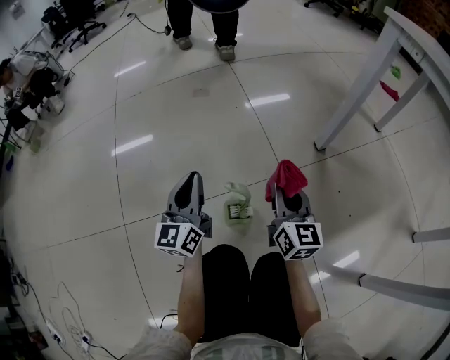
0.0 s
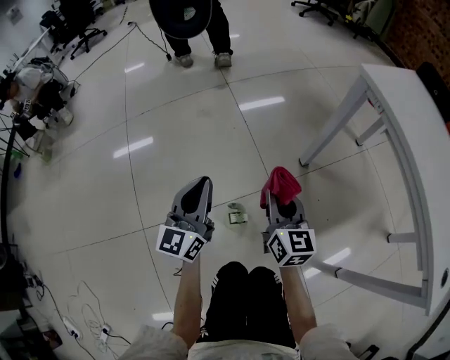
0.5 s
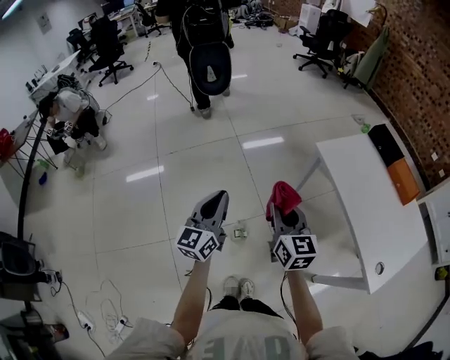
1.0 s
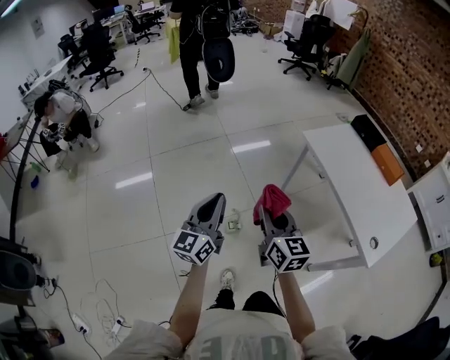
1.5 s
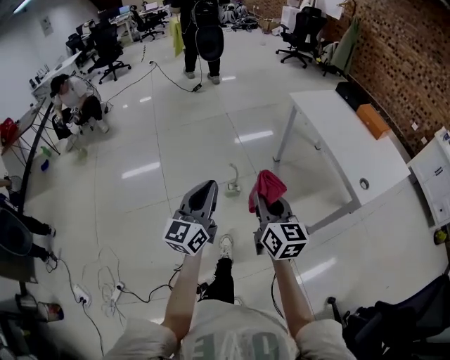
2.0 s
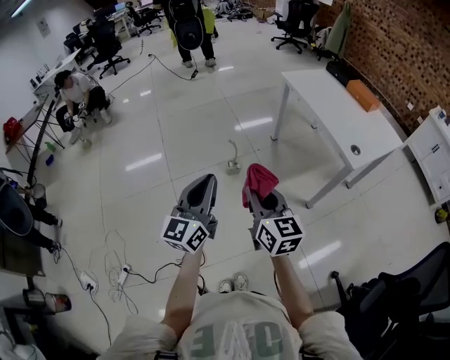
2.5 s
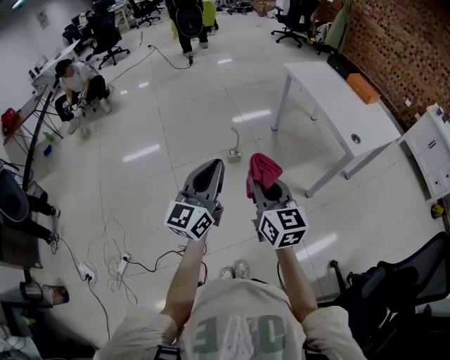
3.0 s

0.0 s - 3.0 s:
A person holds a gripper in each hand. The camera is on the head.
0.0 s - 1.5 s: Both grippers travel together upward, approximately 70 cm.
1.5 s - 3.0 s: Both grippers are carried backward, approximately 50 cm.

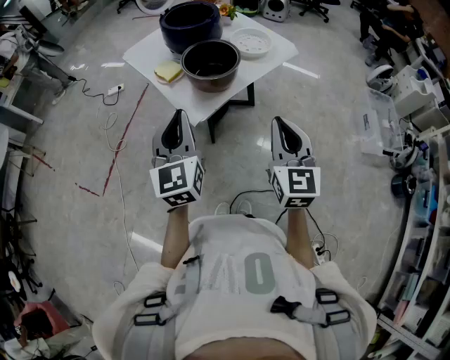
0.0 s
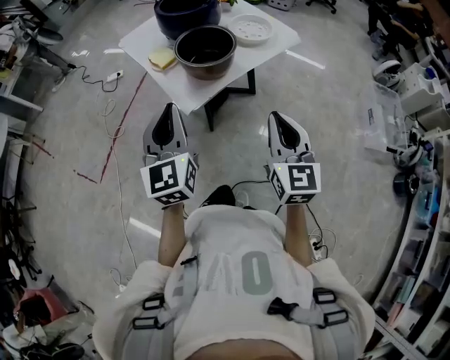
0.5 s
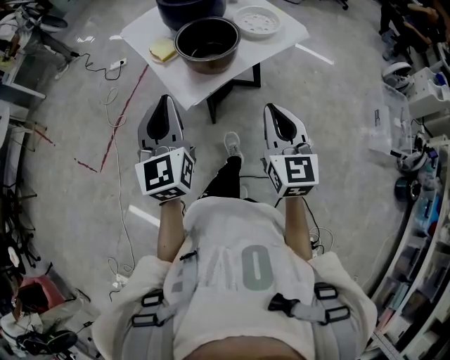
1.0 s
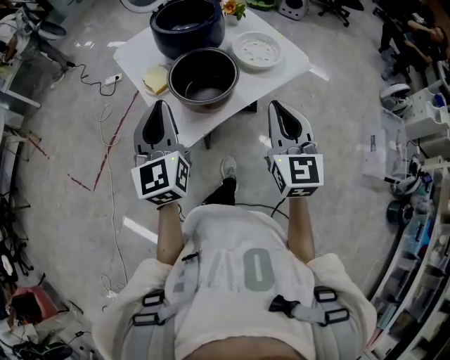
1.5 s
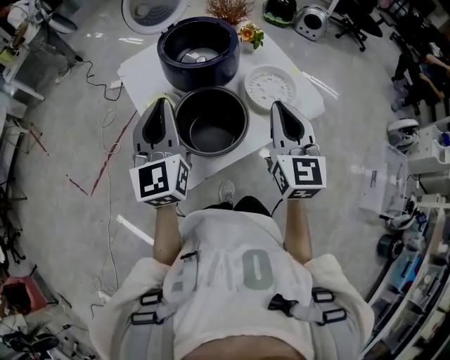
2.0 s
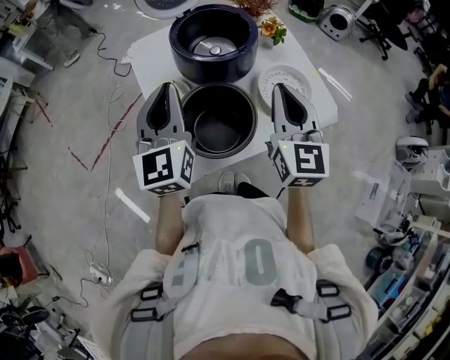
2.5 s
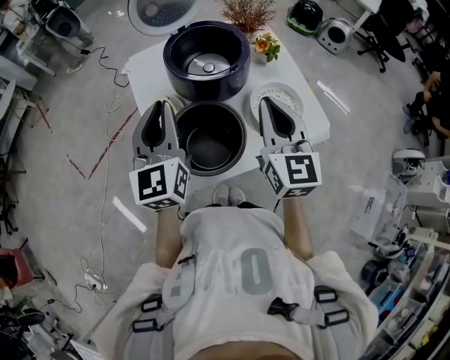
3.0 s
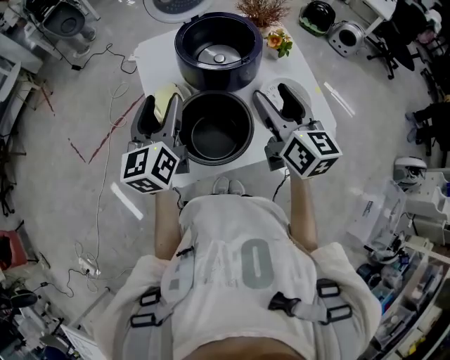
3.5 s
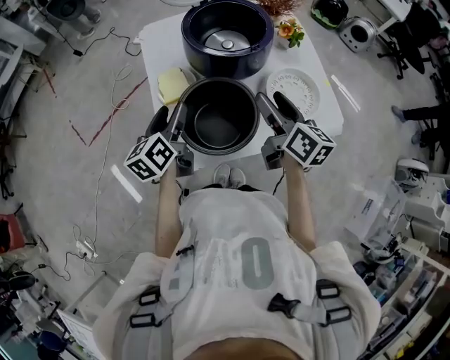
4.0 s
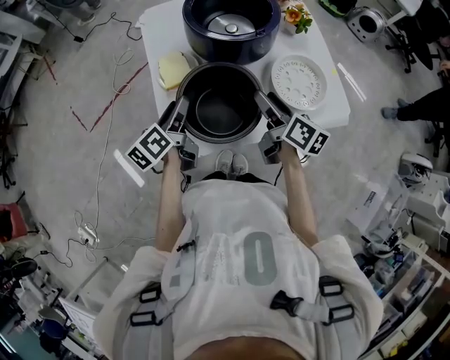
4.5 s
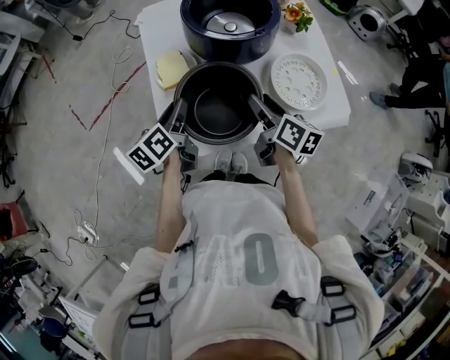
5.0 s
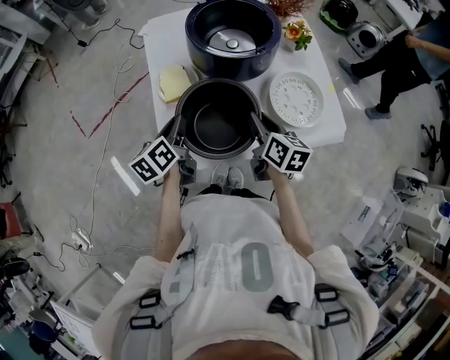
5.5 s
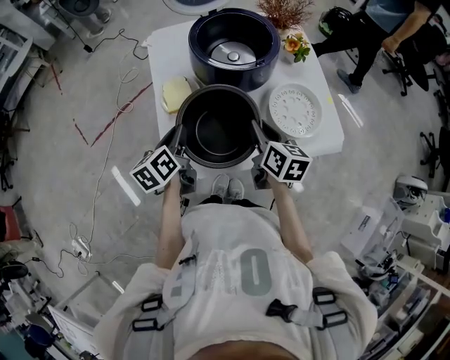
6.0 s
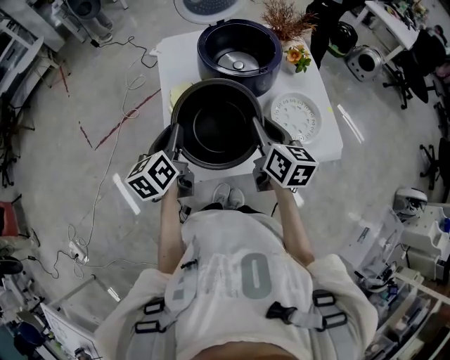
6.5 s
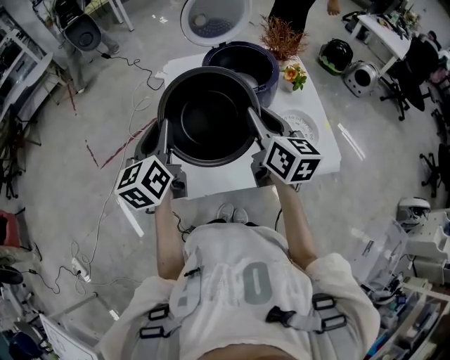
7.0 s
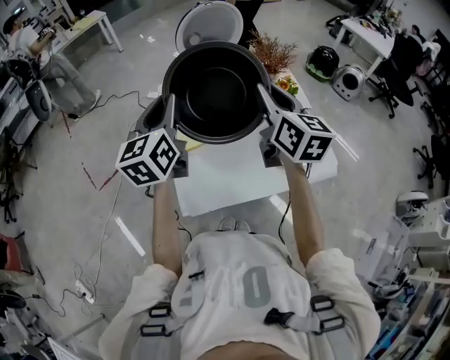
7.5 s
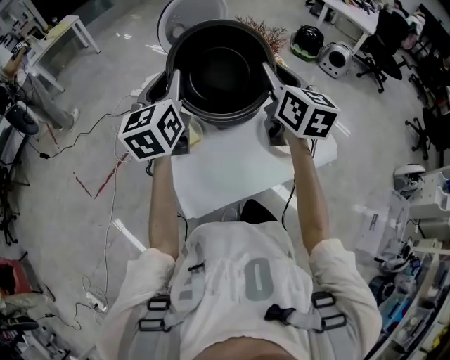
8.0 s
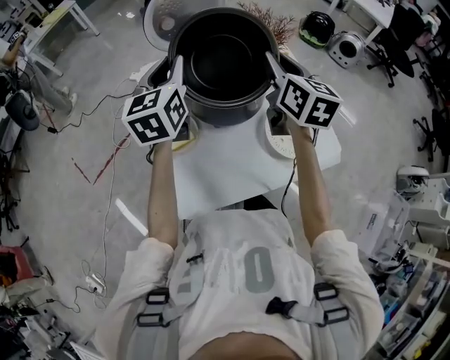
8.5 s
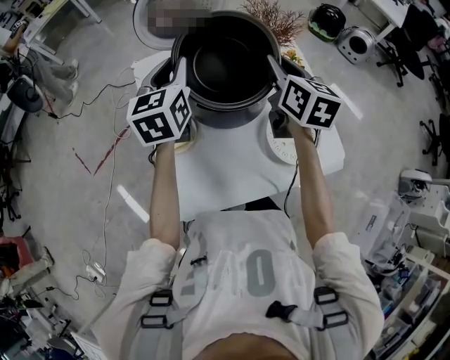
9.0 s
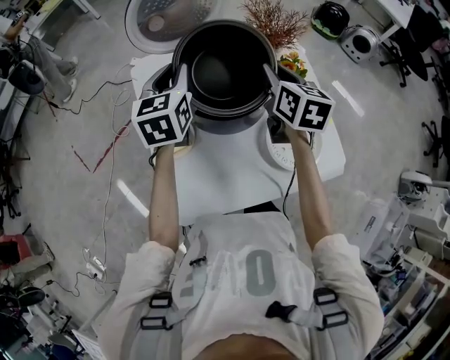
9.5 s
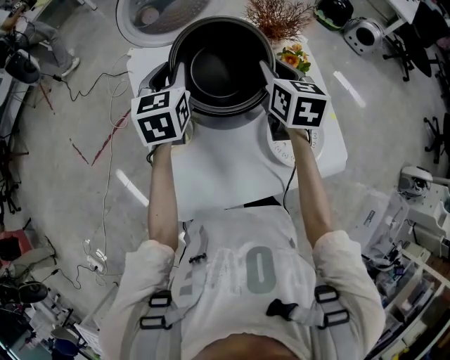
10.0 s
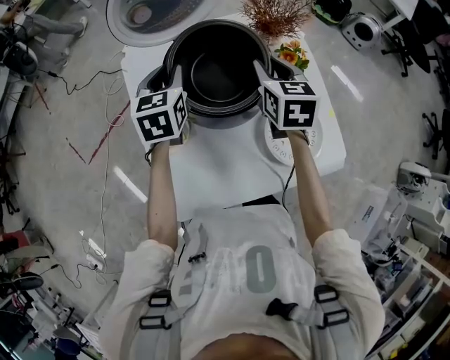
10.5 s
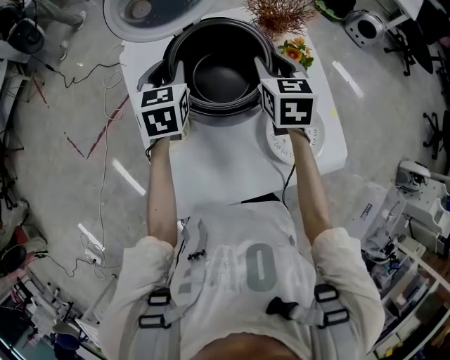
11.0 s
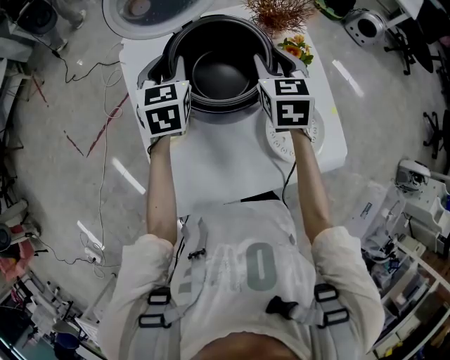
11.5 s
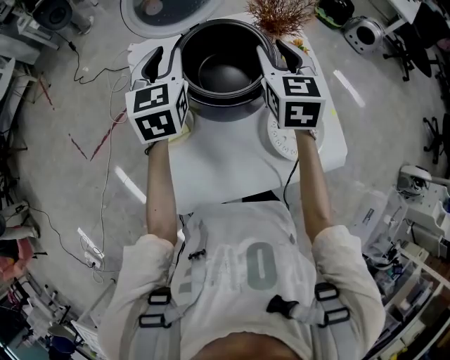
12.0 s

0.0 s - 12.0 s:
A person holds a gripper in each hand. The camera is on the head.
0.0 s - 2.0 s: The two grippers go some 35 cm forward.
2.0 s - 4.0 s: The left gripper is displaced downward by some 15 cm, swivels some 40 degrees, and opens up. The right gripper heads forward and downward, covering roughly 15 cm, swivels about 50 degrees, and opens up.
4.0 s - 6.0 s: The left gripper closes its fingers. The right gripper travels downward by about 5 cm, and closes up.
6.0 s - 8.0 s: Both grippers travel together upward and forward, roughly 25 cm. The left gripper turns by roughly 40 degrees, while the right gripper swivels roughly 30 degrees.
8.0 s - 10.0 s: The left gripper goes about 20 cm forward and downward, and swivels about 20 degrees. The right gripper travels downward and forward by some 20 cm, and changes its angle by some 20 degrees.
10.0 s - 12.0 s: The right gripper heads upward, covering some 5 cm.

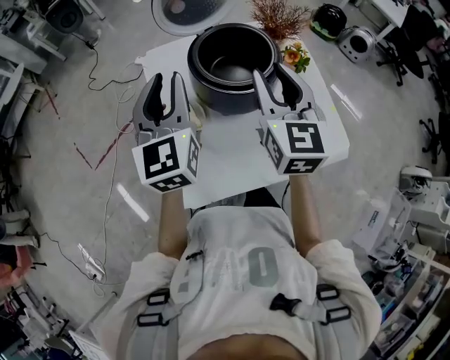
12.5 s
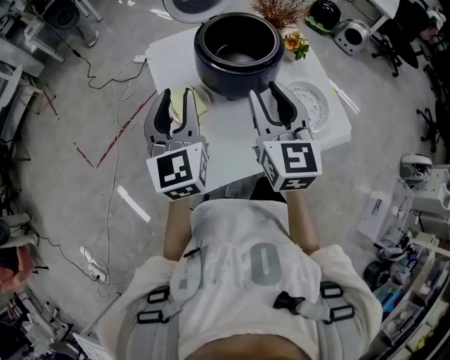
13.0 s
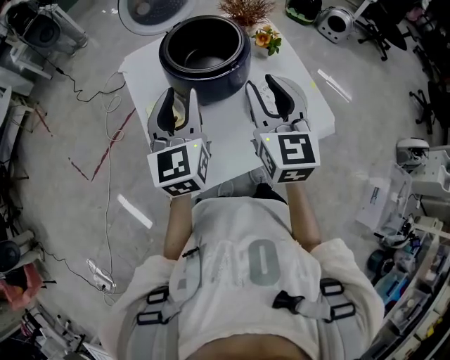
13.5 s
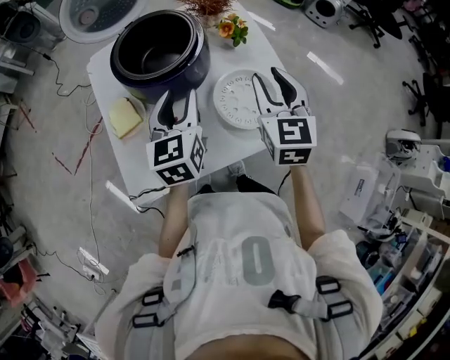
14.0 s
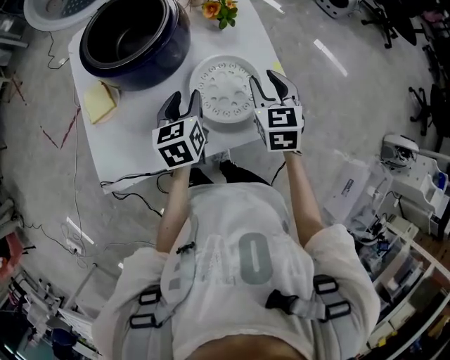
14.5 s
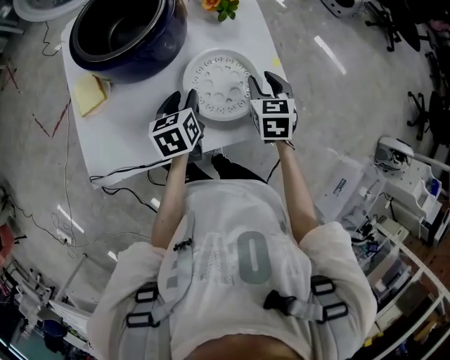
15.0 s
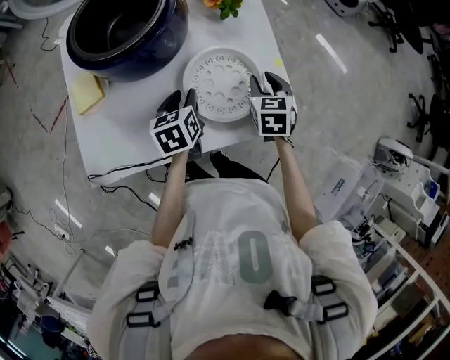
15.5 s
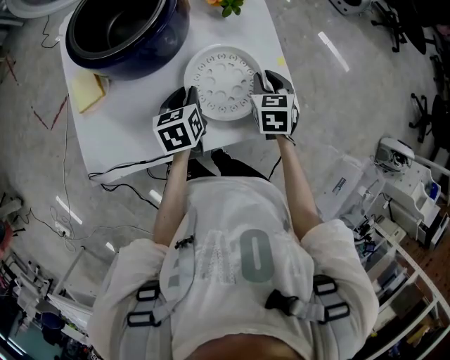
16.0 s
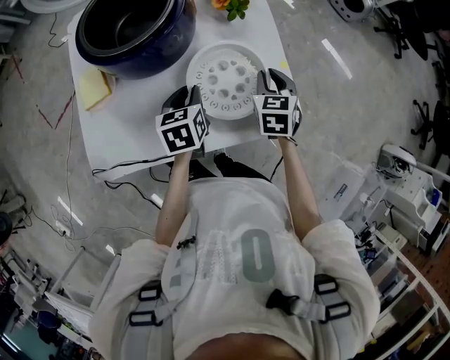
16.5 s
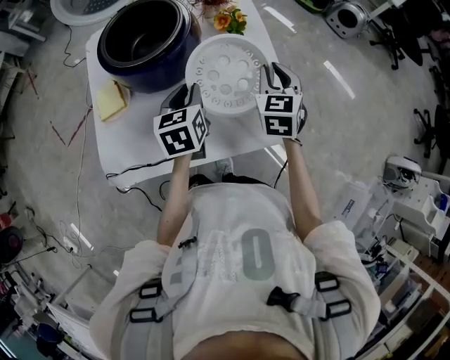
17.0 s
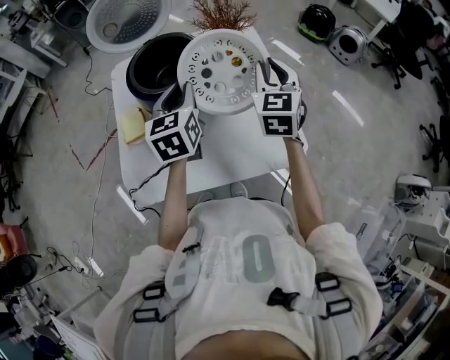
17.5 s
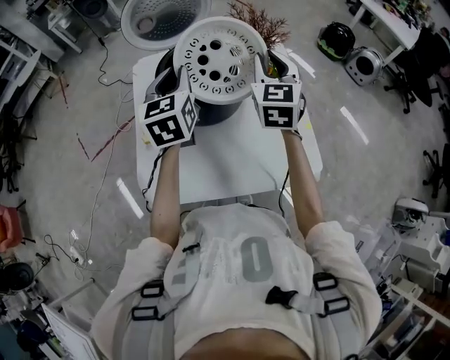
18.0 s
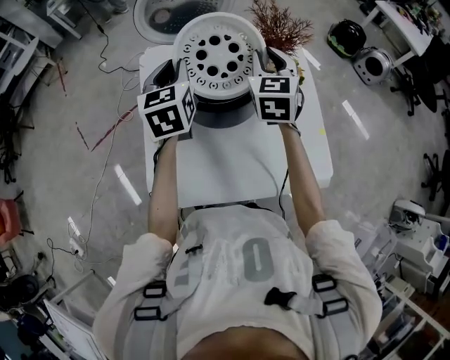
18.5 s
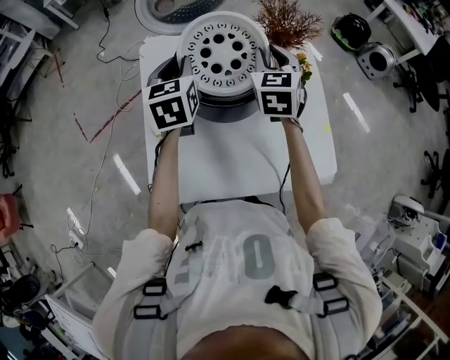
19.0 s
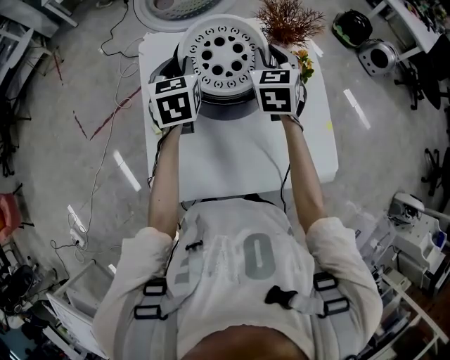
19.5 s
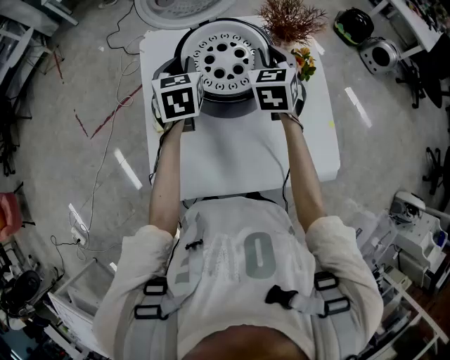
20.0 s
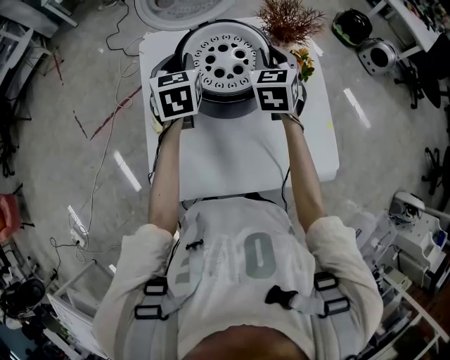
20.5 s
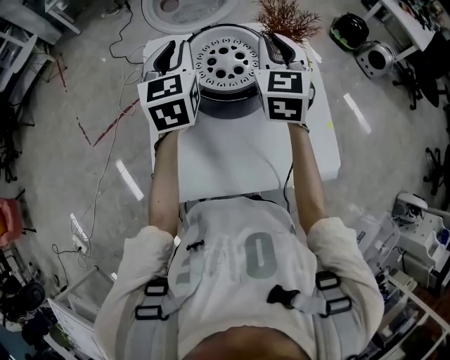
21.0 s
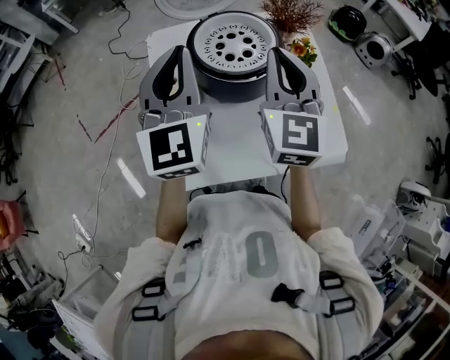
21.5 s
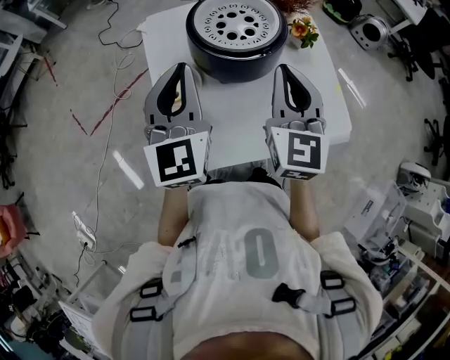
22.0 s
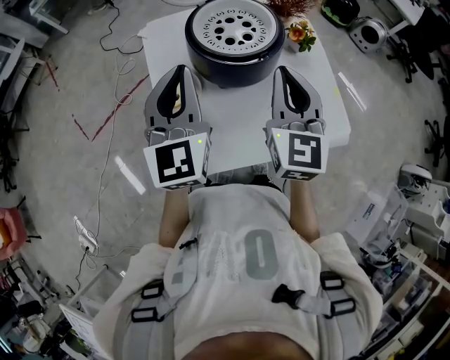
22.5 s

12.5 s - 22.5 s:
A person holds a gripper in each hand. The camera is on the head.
12.5 s - 14.5 s: Both grippers travel together to the right and downward, some 40 cm. The left gripper tilts its fingers roughly 30 degrees downward, while the right gripper turns by approximately 30 degrees.
14.5 s - 16.5 s: Both grippers move downward, roughly 5 cm.
16.5 s - 18.5 s: Both grippers travel together upward, to the left and forward, some 35 cm. The left gripper swivels about 30 degrees, while the right gripper swivels some 20 degrees.
18.5 s - 20.5 s: Both grippers move downward, roughly 5 cm.
20.5 s - 22.5 s: The two grippers go roughly 25 cm backward and upward. The left gripper tips its fingers upward by approximately 30 degrees, while the right gripper swivels approximately 20 degrees.

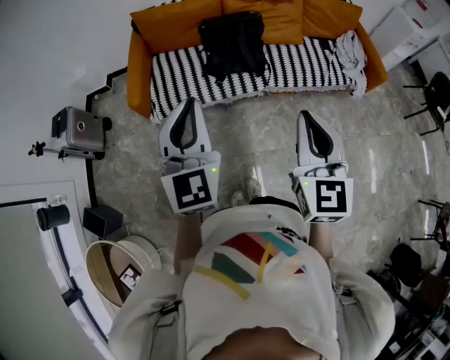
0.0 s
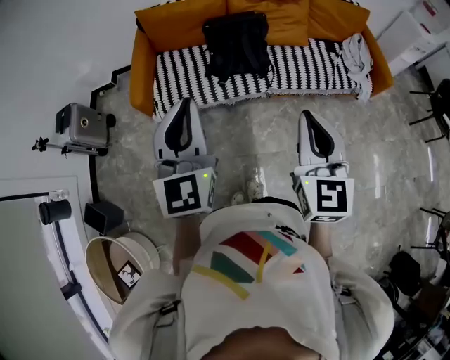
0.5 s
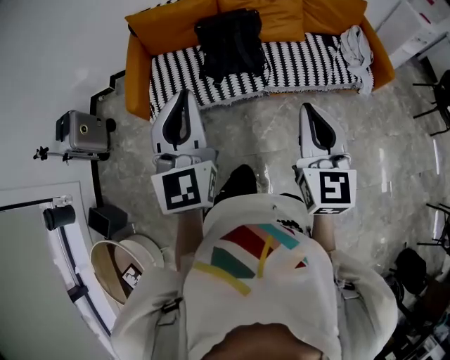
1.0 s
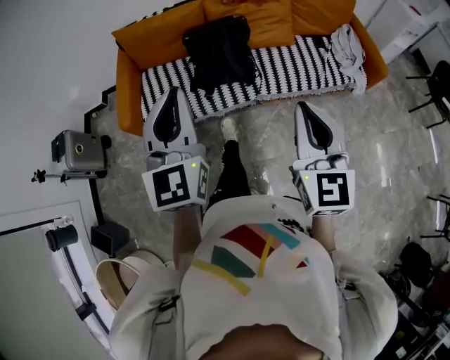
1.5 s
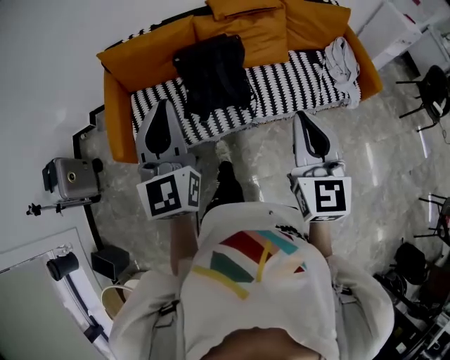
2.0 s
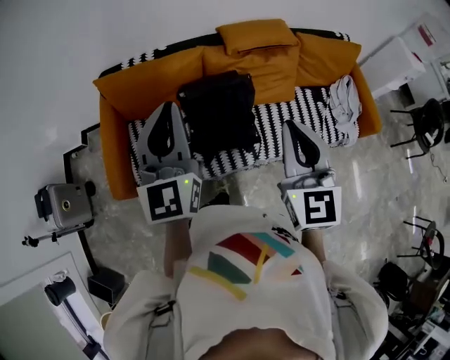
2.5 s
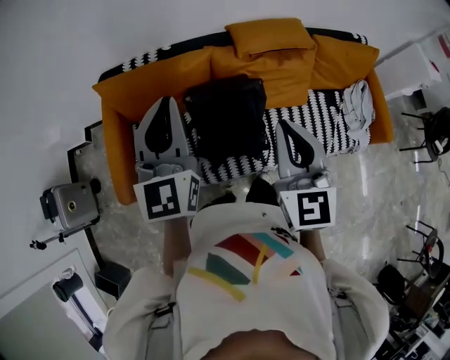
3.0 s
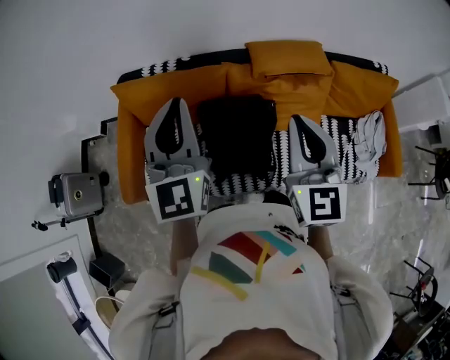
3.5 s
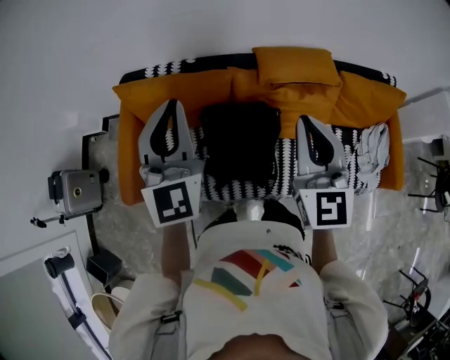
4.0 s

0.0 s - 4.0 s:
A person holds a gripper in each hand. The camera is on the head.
0.0 s - 2.0 s: Both grippers travel together forward, approximately 20 cm.
2.0 s - 4.0 s: Both grippers travel together forward, approximately 40 cm.
